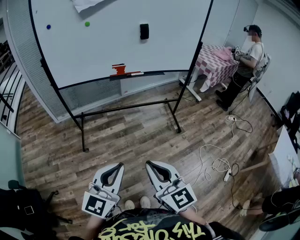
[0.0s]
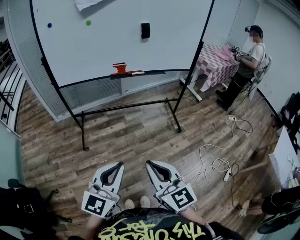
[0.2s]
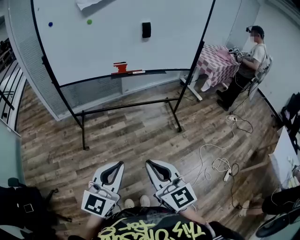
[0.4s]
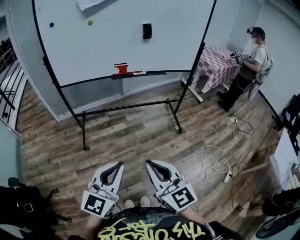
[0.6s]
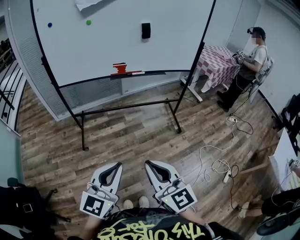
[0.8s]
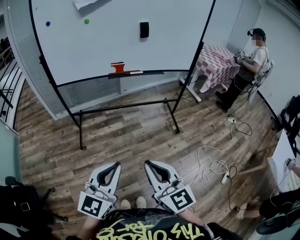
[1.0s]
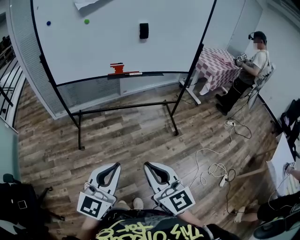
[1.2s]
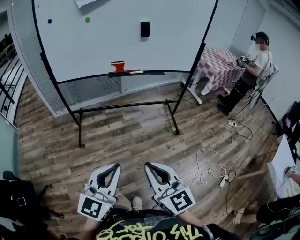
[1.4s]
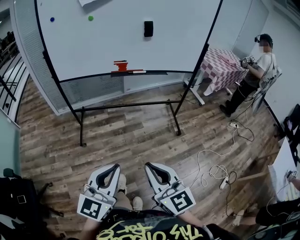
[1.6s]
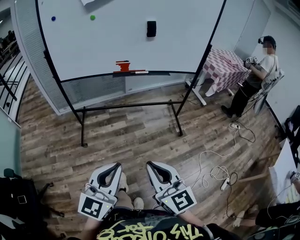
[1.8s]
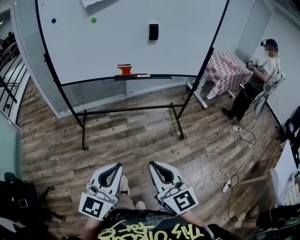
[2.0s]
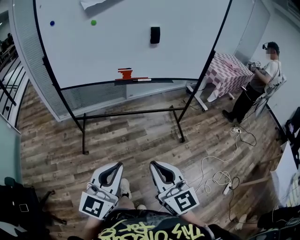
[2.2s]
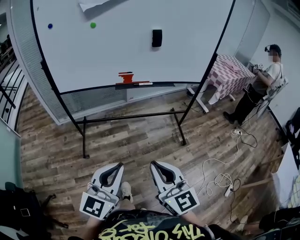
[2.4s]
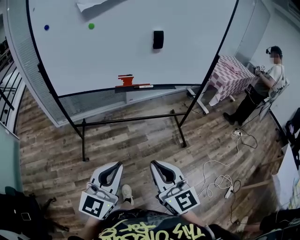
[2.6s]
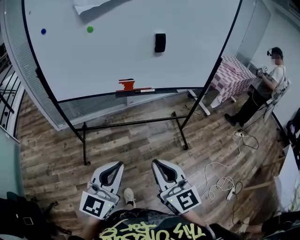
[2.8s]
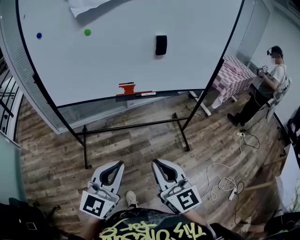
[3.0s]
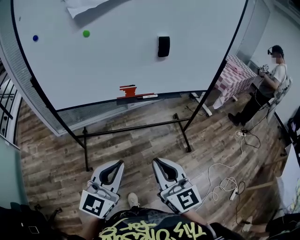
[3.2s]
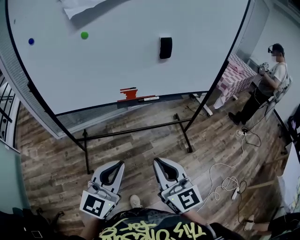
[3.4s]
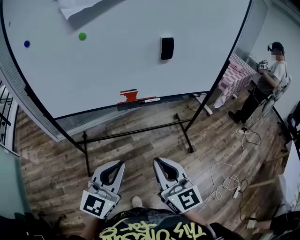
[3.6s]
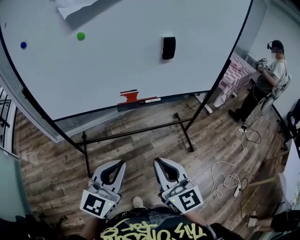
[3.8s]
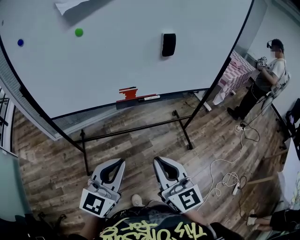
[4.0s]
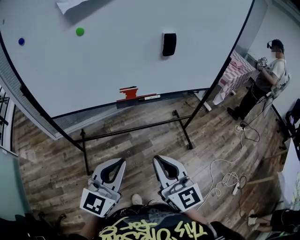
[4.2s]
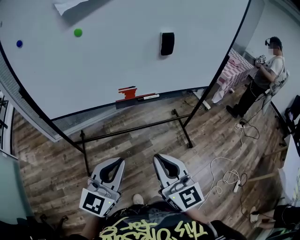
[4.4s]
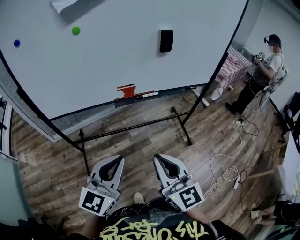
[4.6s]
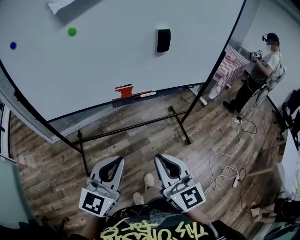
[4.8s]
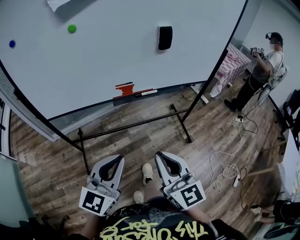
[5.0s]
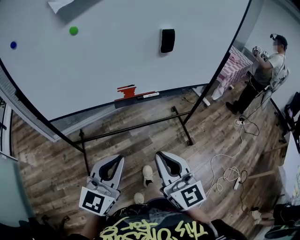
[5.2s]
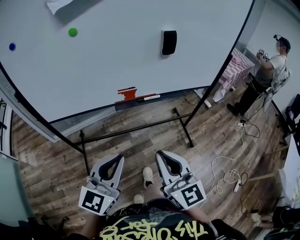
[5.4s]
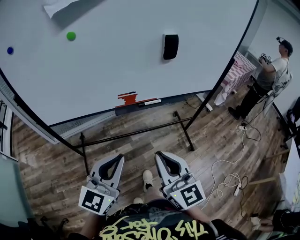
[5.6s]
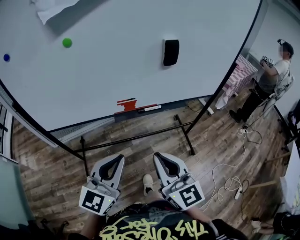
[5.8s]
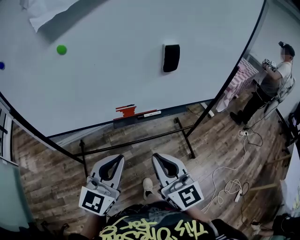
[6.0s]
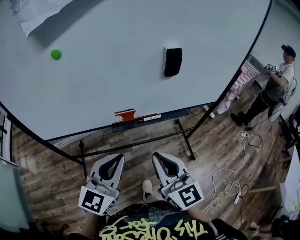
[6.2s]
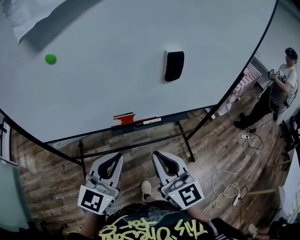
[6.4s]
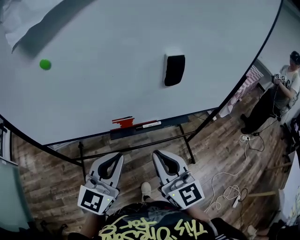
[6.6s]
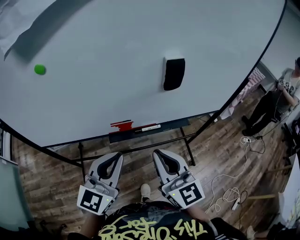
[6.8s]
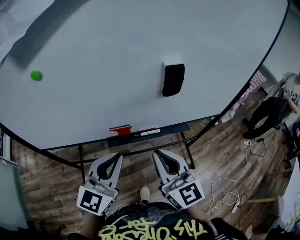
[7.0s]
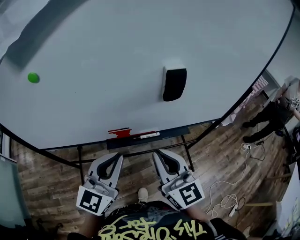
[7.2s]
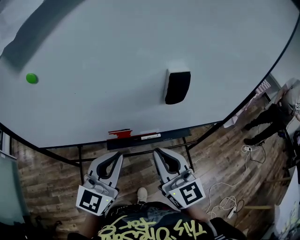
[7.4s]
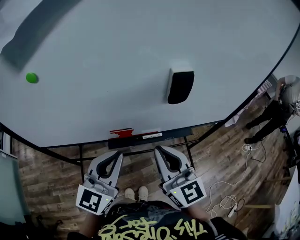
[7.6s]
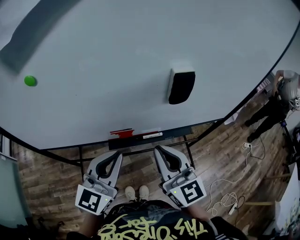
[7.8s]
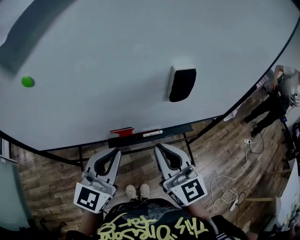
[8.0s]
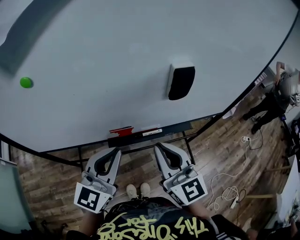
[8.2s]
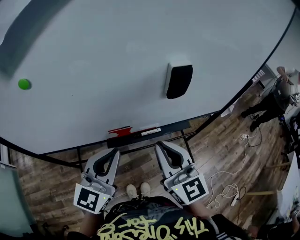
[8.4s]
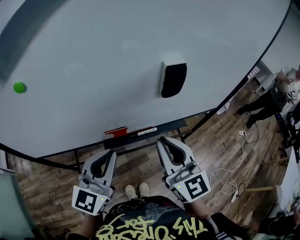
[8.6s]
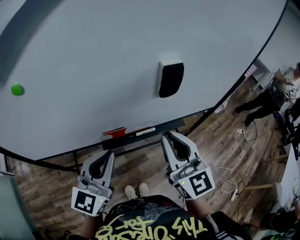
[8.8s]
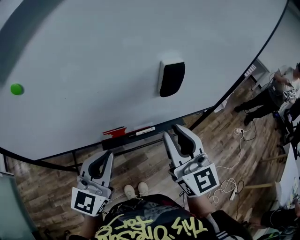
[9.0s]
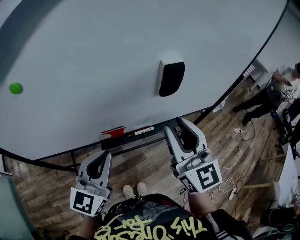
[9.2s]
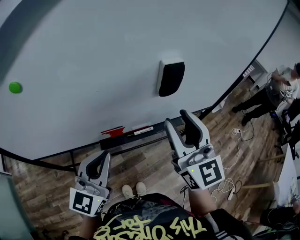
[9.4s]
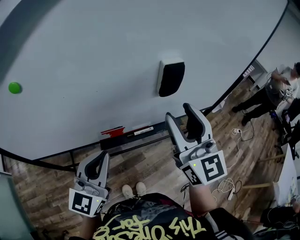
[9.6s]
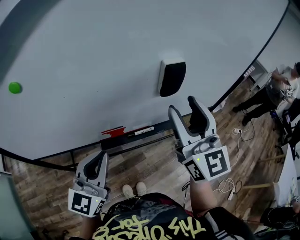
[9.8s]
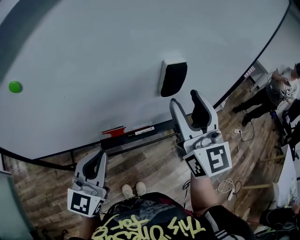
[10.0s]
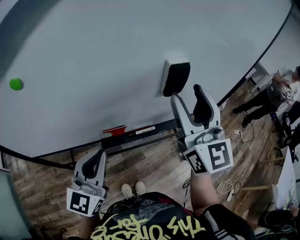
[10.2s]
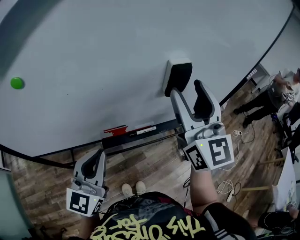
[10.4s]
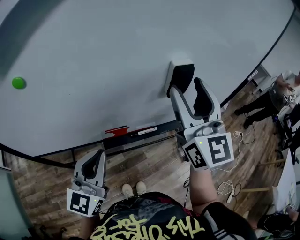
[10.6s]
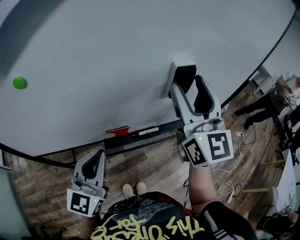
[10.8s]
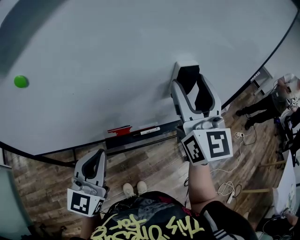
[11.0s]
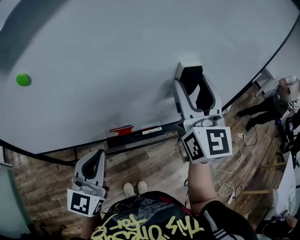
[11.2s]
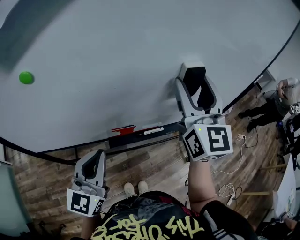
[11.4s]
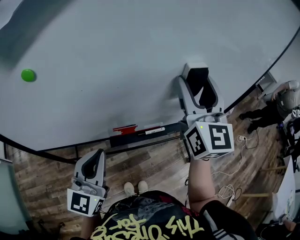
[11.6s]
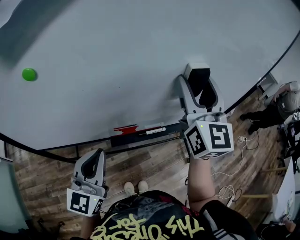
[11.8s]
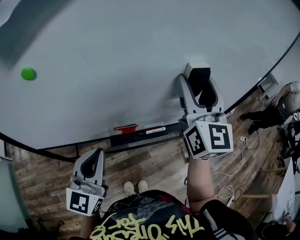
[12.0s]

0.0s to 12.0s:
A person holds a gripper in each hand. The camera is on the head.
0.0s to 1.6s: The grippers move only a little.
1.6s to 3.0s: Both grippers travel together forward, approximately 20 cm.
3.0s to 4.4s: The grippers both shift forward by about 10 cm.
4.4s to 6.0s: Both grippers move forward, roughly 10 cm.
6.0s to 7.6s: The two grippers go about 15 cm forward.
7.6s to 9.0s: The right gripper shifts by approximately 5 cm.
9.0s to 10.4s: The right gripper is displaced upward and forward by roughly 10 cm, and opens up.
10.4s to 12.0s: There are only small adjustments of the grippers.

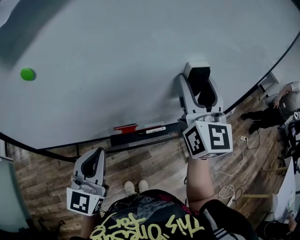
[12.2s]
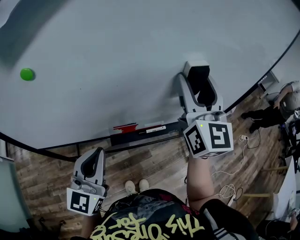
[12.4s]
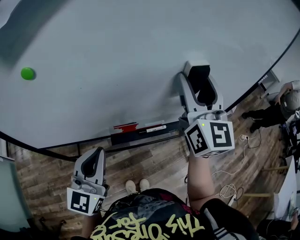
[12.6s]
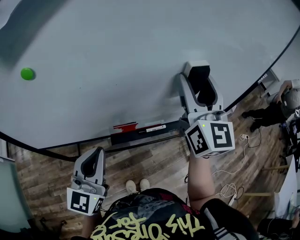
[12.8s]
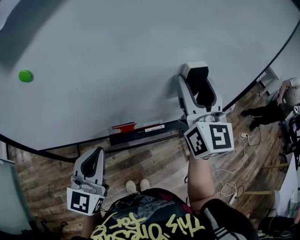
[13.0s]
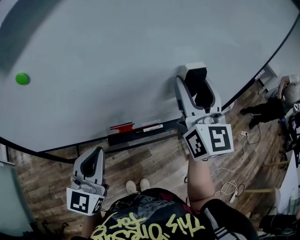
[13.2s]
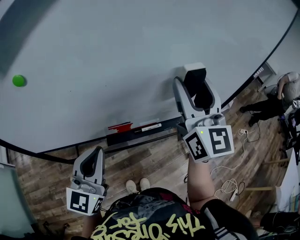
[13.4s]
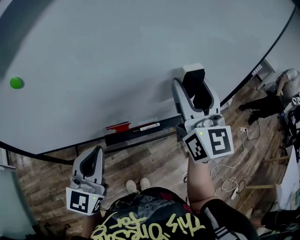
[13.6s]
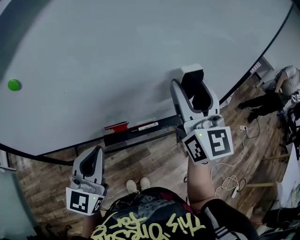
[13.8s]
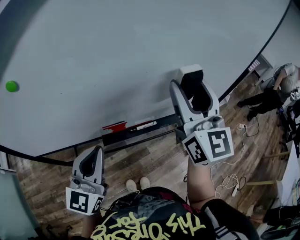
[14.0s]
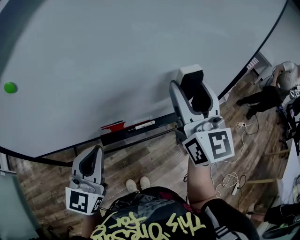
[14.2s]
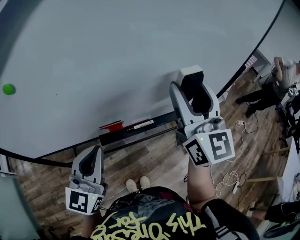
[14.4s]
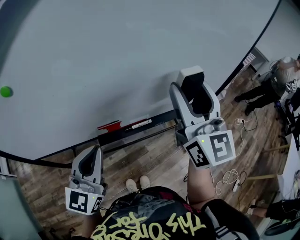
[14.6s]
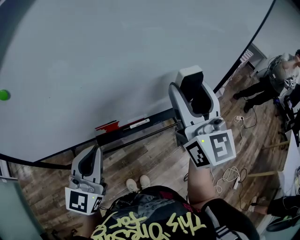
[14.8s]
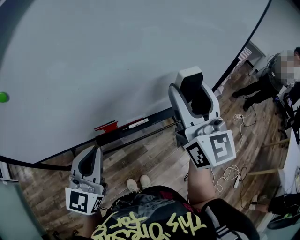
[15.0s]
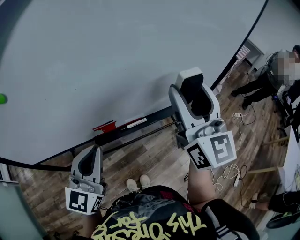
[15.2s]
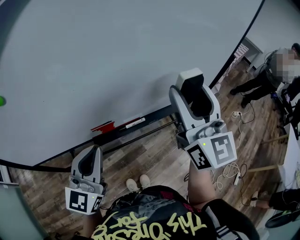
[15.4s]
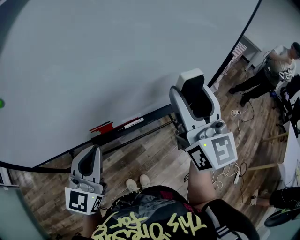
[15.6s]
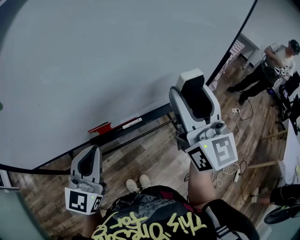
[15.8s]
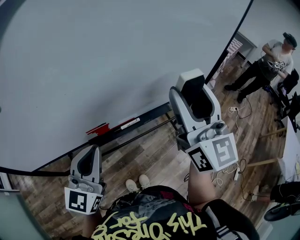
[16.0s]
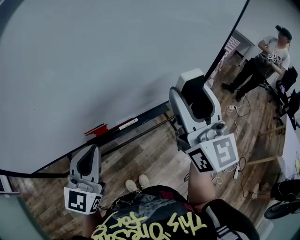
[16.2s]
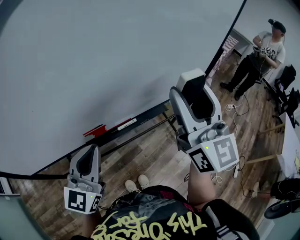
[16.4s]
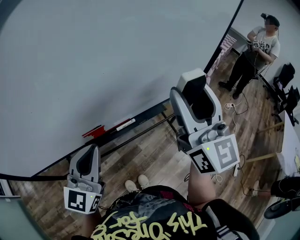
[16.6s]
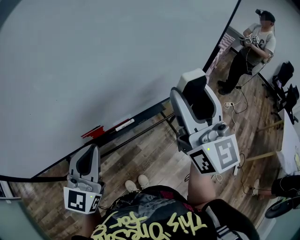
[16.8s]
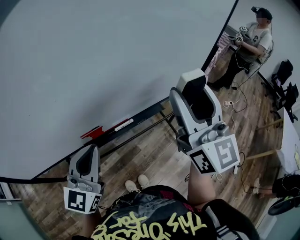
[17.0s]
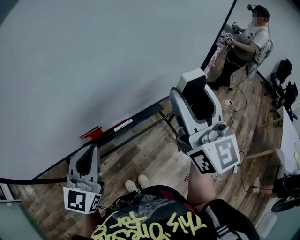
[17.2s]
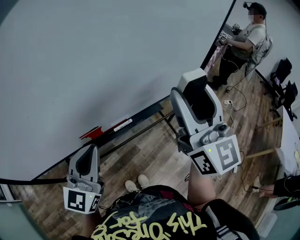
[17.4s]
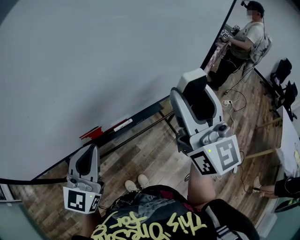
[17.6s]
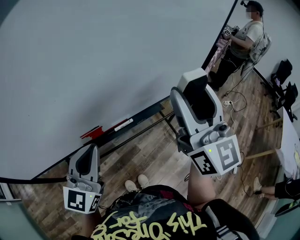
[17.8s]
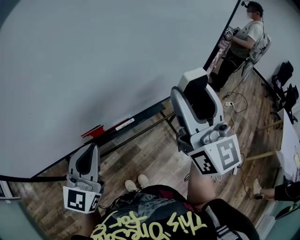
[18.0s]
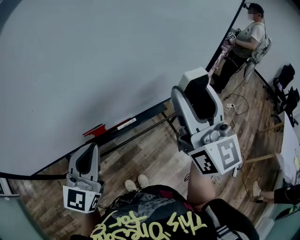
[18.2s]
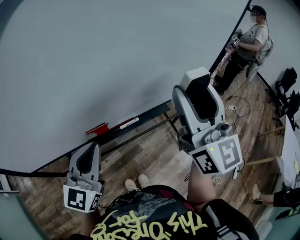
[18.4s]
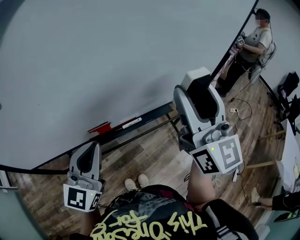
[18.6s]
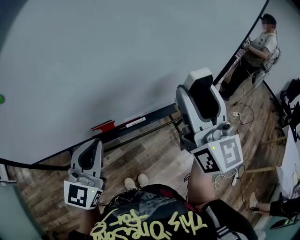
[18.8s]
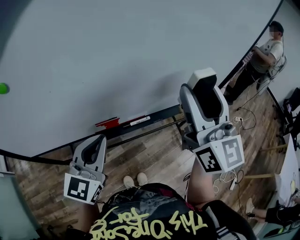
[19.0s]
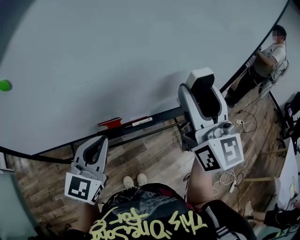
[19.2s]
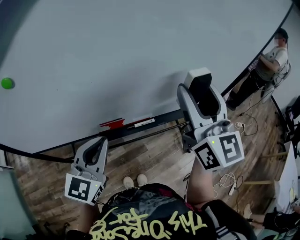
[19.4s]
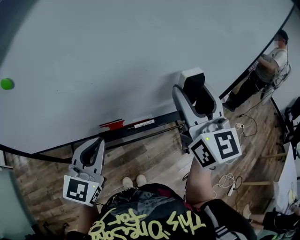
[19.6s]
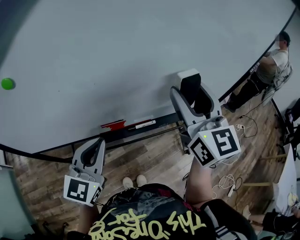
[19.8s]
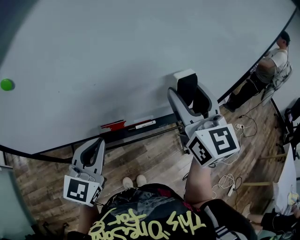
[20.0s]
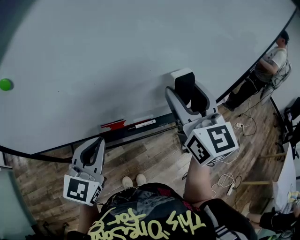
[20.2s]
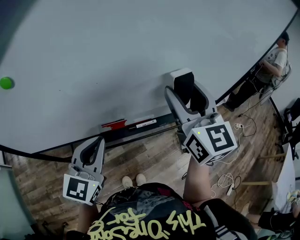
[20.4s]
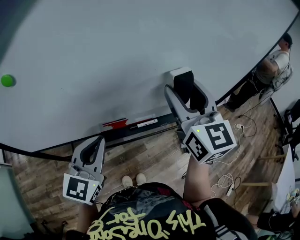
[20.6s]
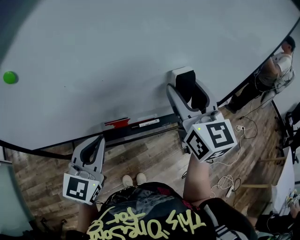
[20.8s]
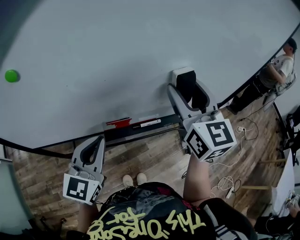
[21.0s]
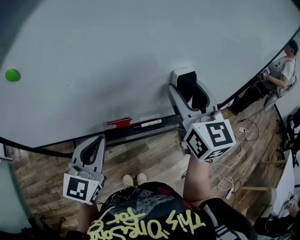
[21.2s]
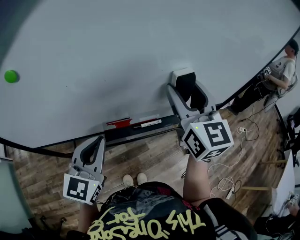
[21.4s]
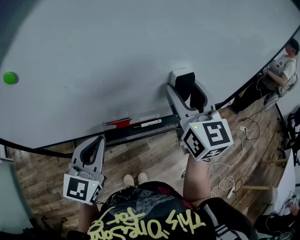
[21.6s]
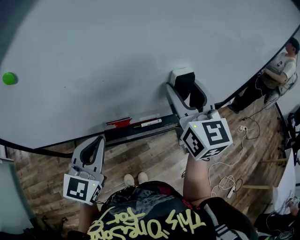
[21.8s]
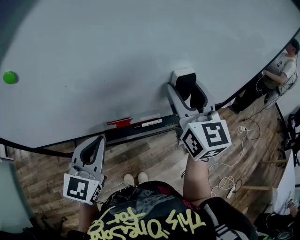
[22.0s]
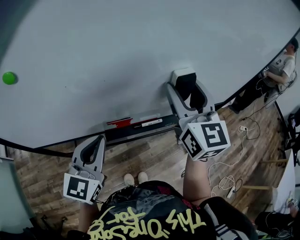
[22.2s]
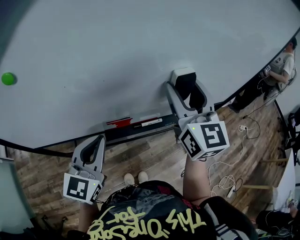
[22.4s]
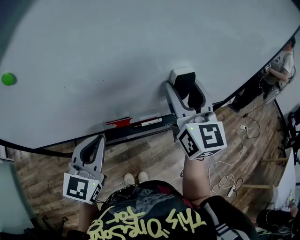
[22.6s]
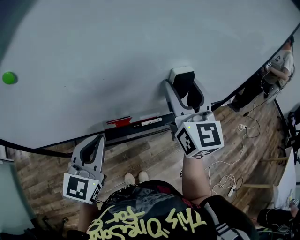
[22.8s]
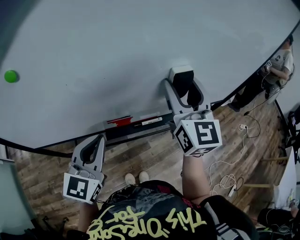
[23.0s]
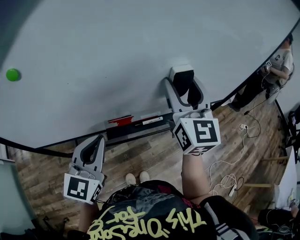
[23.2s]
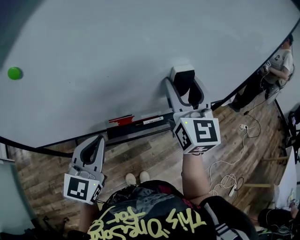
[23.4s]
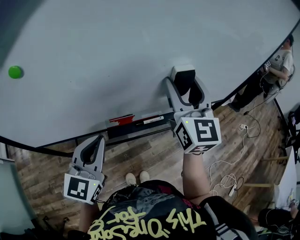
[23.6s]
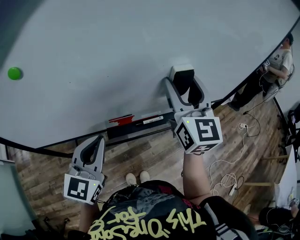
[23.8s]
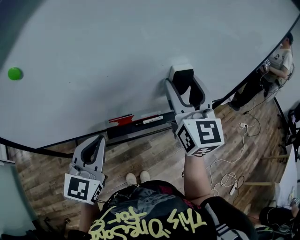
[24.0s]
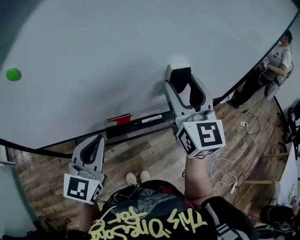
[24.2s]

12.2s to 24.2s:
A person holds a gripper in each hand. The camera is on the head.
12.2s to 13.8s: The grippers make only small movements.
13.8s to 15.2s: The right gripper changes place by about 5 cm.
15.2s to 16.6s: There are only small adjustments of the grippers.
16.6s to 18.2s: Neither gripper changes place.
18.2s to 19.8s: The left gripper shifts by roughly 5 cm; the right gripper moves to the left and forward, approximately 10 cm.
19.8s to 24.2s: The grippers stay close to where they were, moving slightly.
